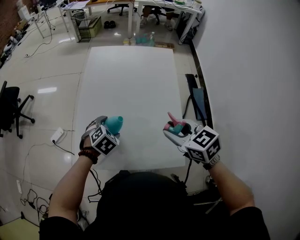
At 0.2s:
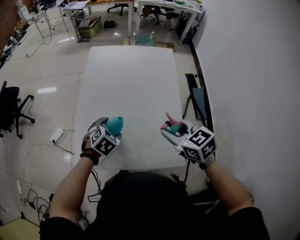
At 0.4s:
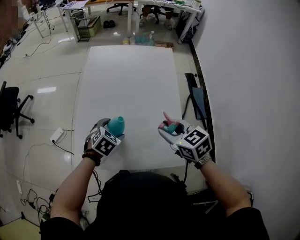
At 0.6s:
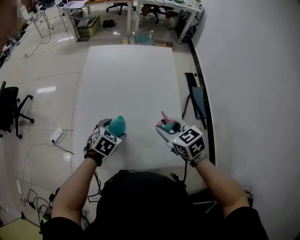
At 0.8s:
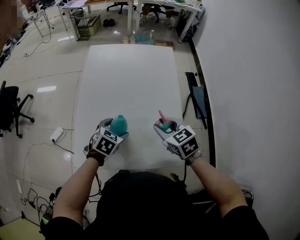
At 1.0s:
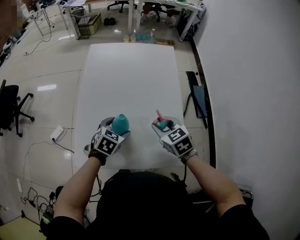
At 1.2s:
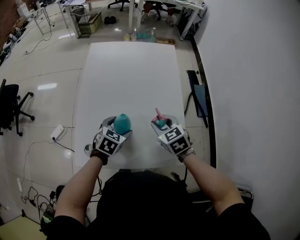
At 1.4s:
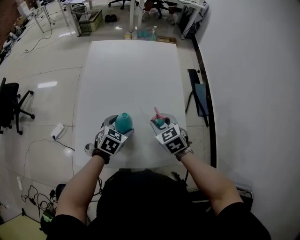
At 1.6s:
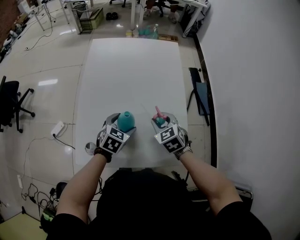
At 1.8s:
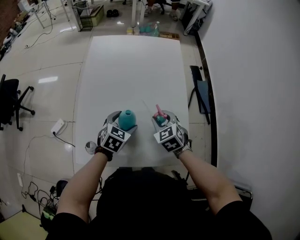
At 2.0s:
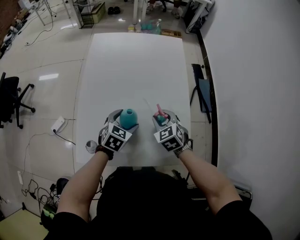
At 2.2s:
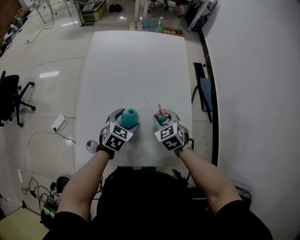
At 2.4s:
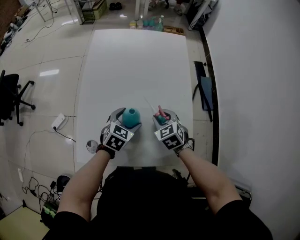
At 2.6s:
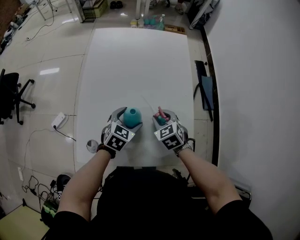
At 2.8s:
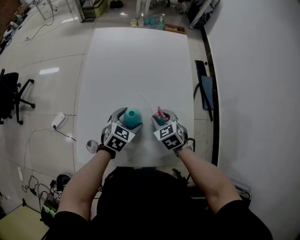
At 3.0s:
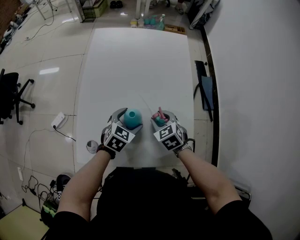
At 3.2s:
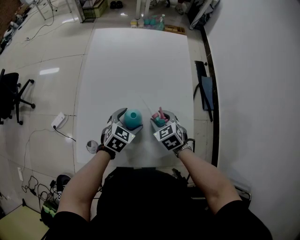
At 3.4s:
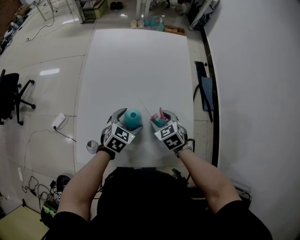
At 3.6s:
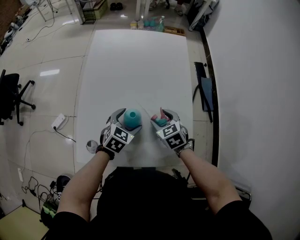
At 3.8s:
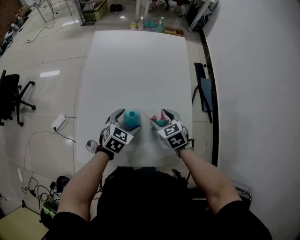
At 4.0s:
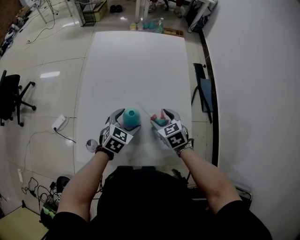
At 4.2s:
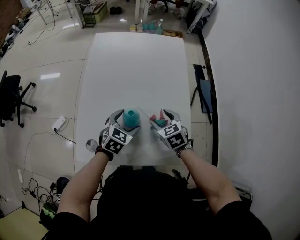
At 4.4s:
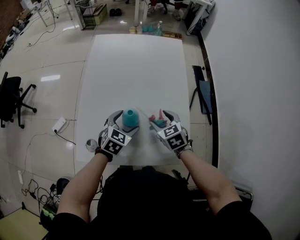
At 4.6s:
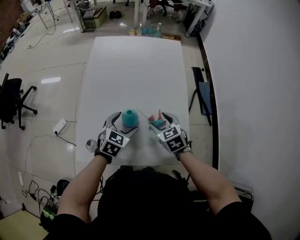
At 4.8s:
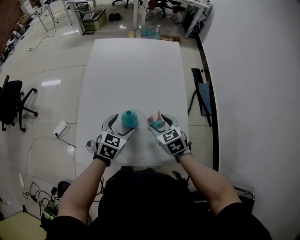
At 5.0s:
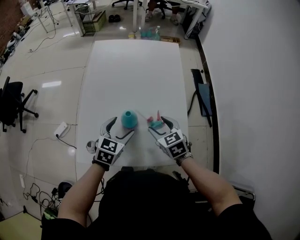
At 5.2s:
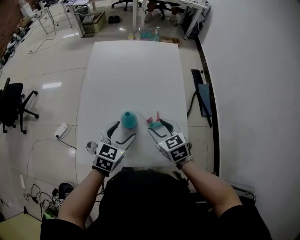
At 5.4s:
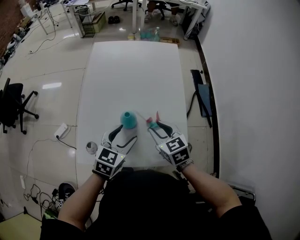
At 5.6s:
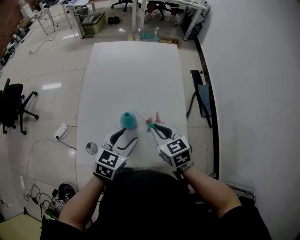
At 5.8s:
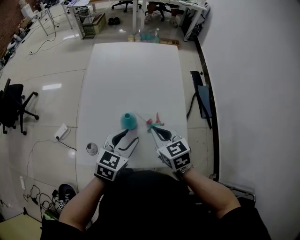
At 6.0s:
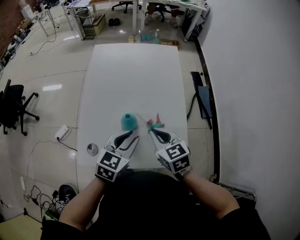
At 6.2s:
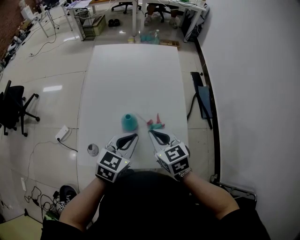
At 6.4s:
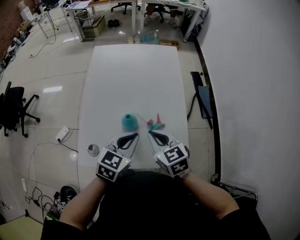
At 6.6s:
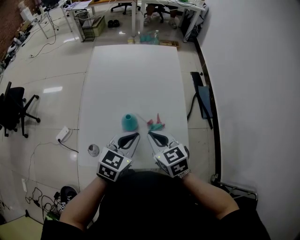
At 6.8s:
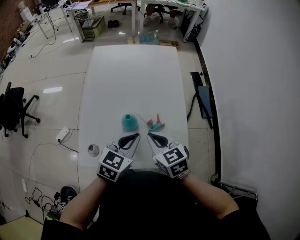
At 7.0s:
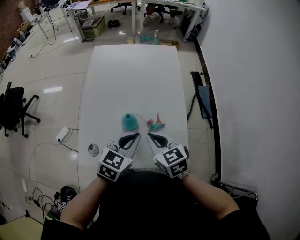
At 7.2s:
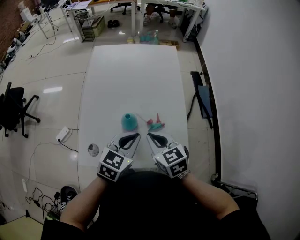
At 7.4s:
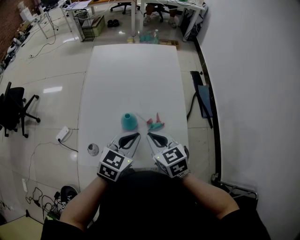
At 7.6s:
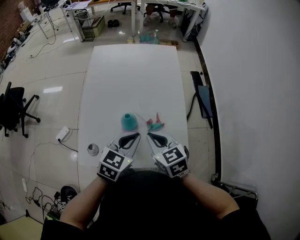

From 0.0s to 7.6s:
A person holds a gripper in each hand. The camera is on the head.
From 0.0s to 1.6s: The right gripper heads downward and forward, covering approximately 15 cm, and swivels roughly 20 degrees. The left gripper moves to the right, approximately 5 cm, and changes its angle by approximately 20 degrees.
From 1.6s to 3.0s: The right gripper moves about 5 cm.
From 3.0s to 4.6s: The right gripper opens.
From 4.6s to 6.0s: The left gripper moves upward and backward, about 10 cm, and closes up; the right gripper goes some 10 cm upward, and closes its fingers.
From 6.0s to 7.6s: The grippers make only small movements.

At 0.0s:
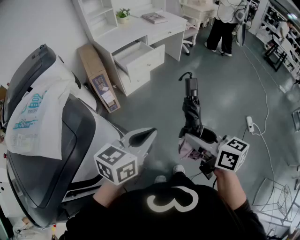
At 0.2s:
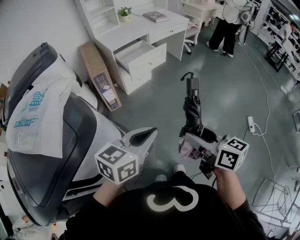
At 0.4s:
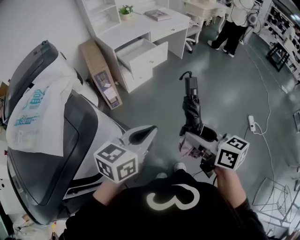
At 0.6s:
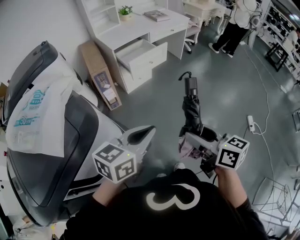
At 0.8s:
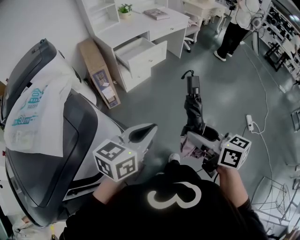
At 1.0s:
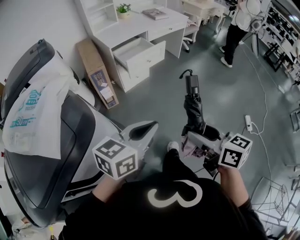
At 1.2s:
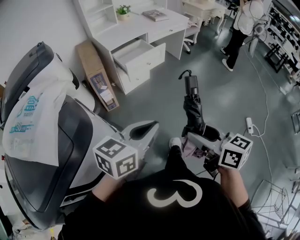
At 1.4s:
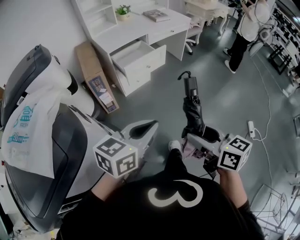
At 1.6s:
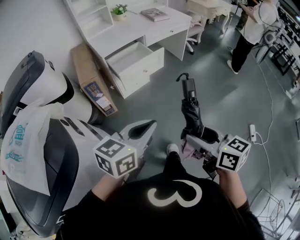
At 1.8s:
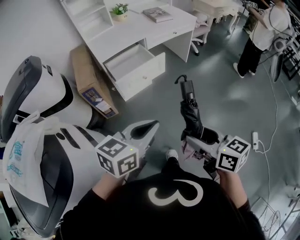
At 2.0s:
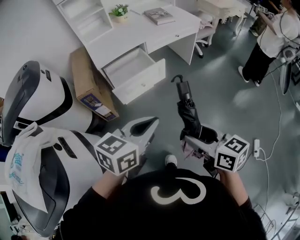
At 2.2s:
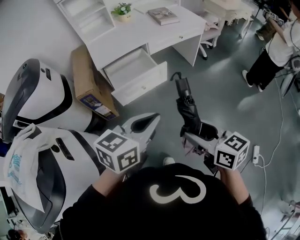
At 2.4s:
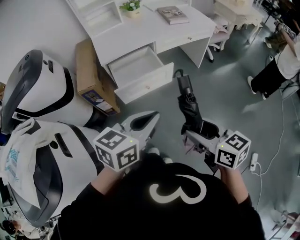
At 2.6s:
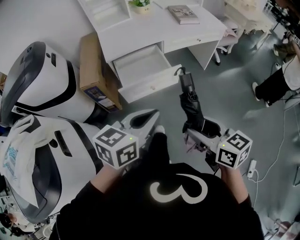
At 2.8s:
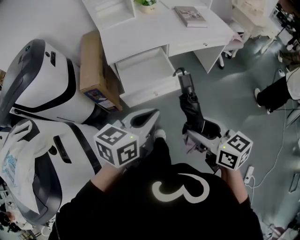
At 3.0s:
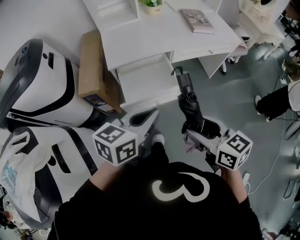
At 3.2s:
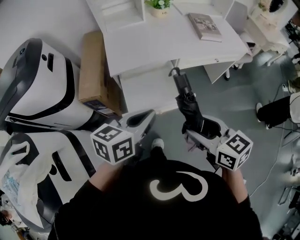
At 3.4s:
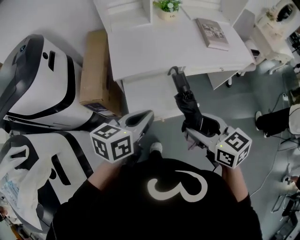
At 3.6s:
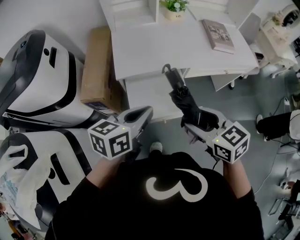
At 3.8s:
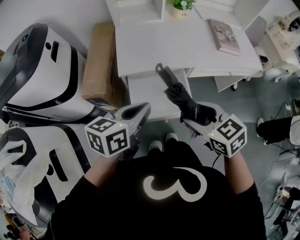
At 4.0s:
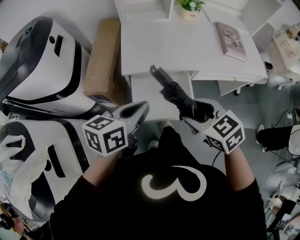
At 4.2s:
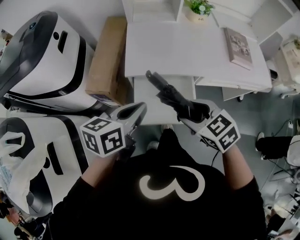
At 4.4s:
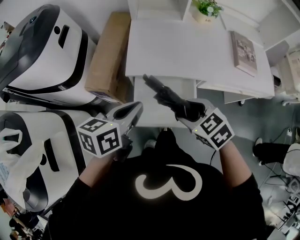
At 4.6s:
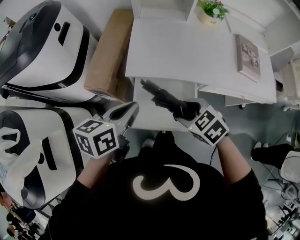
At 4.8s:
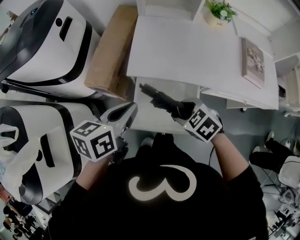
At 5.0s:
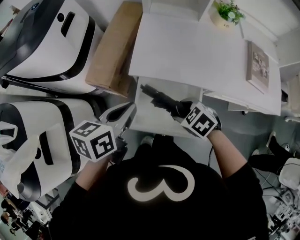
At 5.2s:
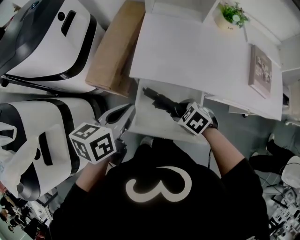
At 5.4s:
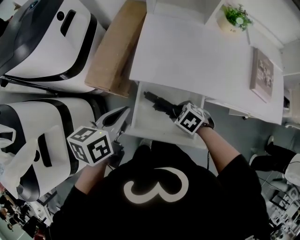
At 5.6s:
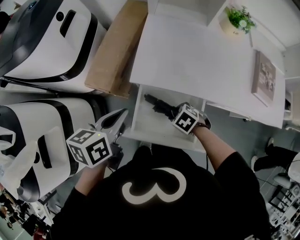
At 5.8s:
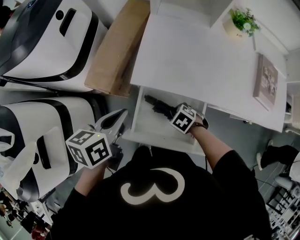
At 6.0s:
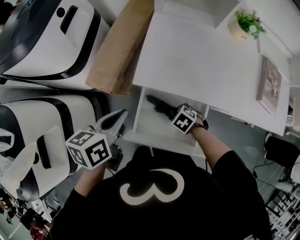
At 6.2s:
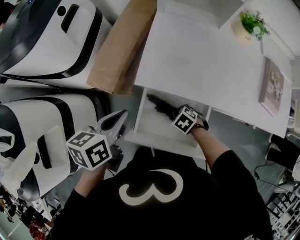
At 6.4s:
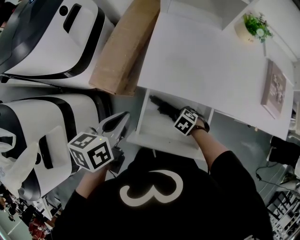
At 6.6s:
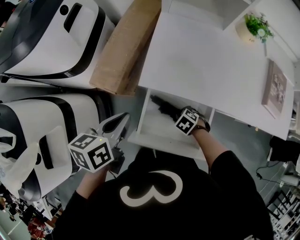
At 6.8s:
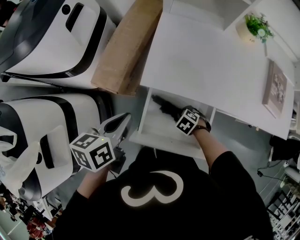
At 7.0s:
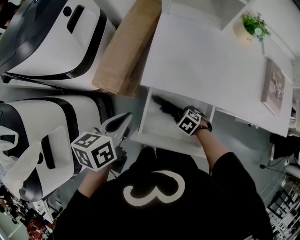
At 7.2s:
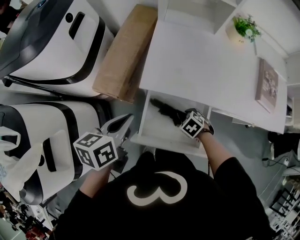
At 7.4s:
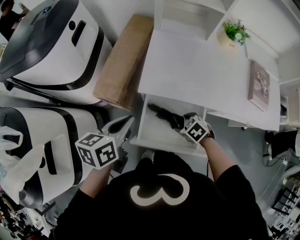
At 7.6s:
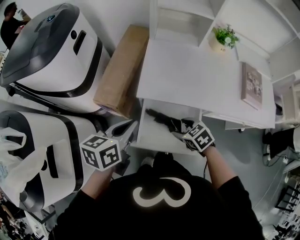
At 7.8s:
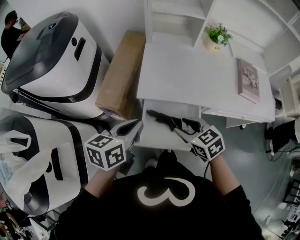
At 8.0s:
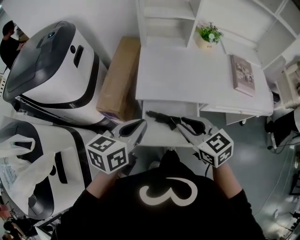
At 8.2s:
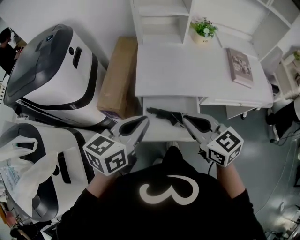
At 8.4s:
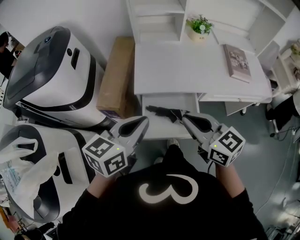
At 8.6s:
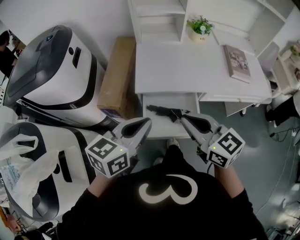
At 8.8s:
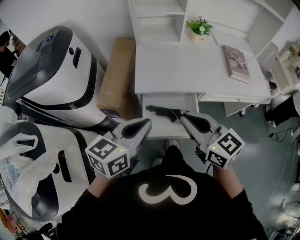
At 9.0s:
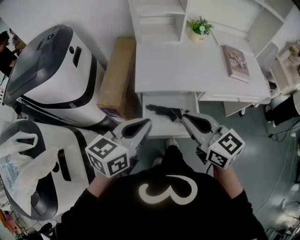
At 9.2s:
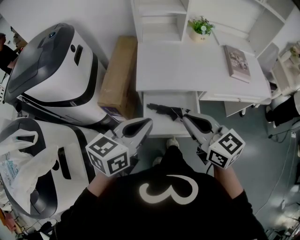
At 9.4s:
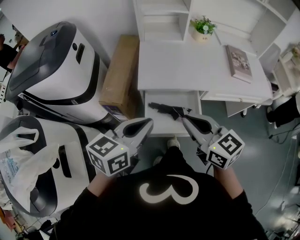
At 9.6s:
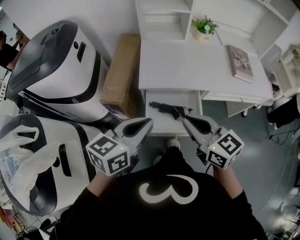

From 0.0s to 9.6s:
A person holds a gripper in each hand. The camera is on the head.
From 0.0s to 1.6s: The two grippers go approximately 15 cm forward.
From 1.6s to 3.2s: The pair of grippers is taken forward, about 50 cm. The left gripper rotates roughly 20 degrees, while the right gripper swivels some 30 degrees.
From 3.2s to 4.8s: The left gripper moves roughly 20 cm, and rotates about 30 degrees. The right gripper changes place by approximately 30 cm, and angles its fingers downward, by roughly 30 degrees.
From 4.8s to 6.4s: The right gripper travels downward by about 25 cm, and swivels about 20 degrees, while the left gripper shifts by about 10 cm.
From 6.4s to 8.0s: The right gripper travels upward by about 35 cm, tips its fingers upward by roughly 50 degrees, and closes up; the left gripper goes some 10 cm upward, and changes its angle by roughly 30 degrees.
From 8.0s to 9.6s: Both grippers move backward, some 5 cm.

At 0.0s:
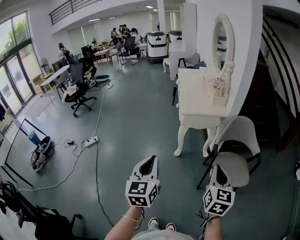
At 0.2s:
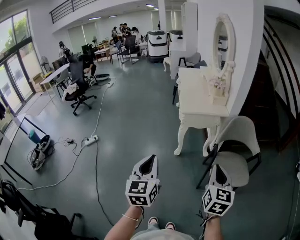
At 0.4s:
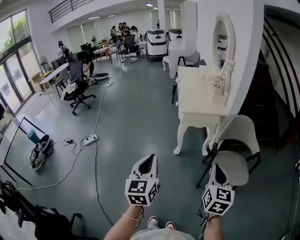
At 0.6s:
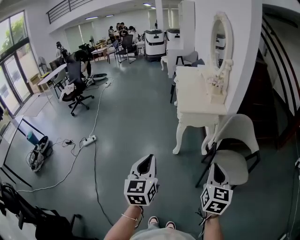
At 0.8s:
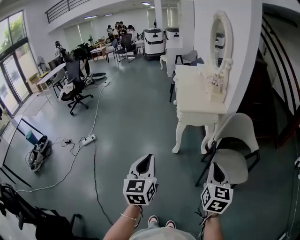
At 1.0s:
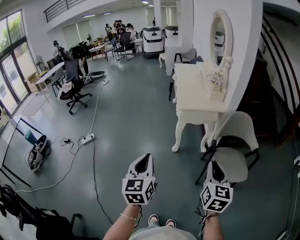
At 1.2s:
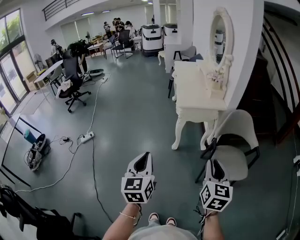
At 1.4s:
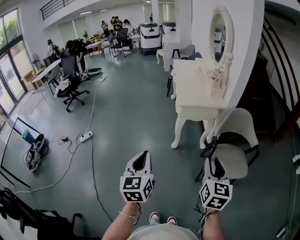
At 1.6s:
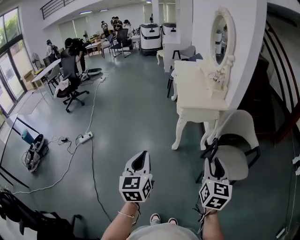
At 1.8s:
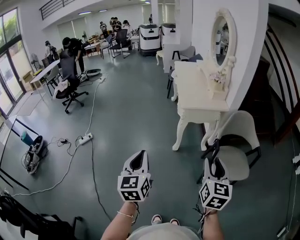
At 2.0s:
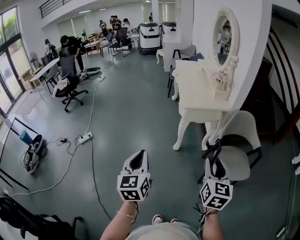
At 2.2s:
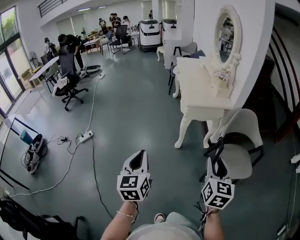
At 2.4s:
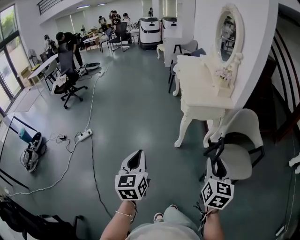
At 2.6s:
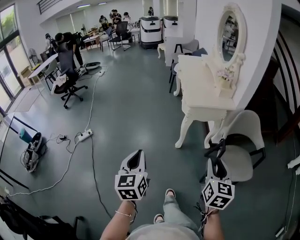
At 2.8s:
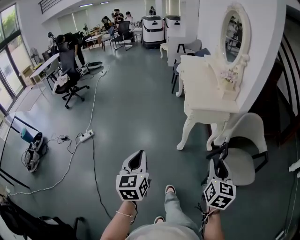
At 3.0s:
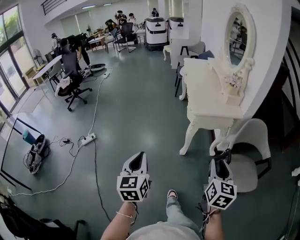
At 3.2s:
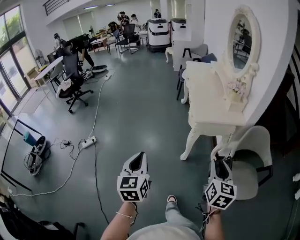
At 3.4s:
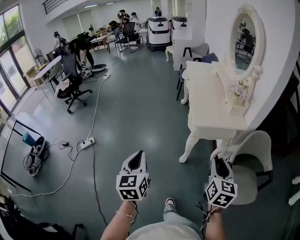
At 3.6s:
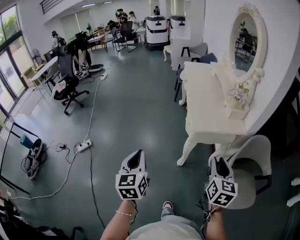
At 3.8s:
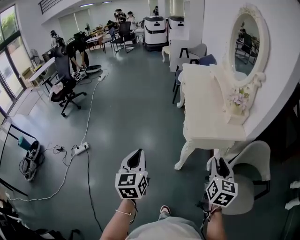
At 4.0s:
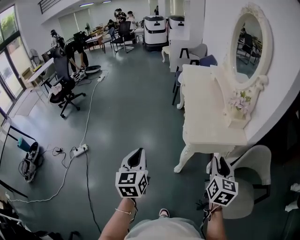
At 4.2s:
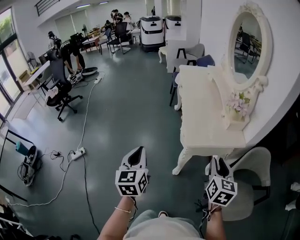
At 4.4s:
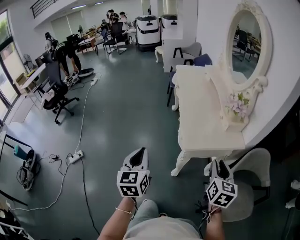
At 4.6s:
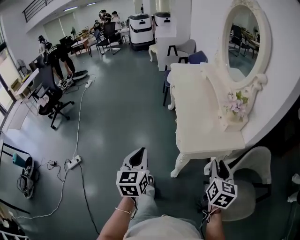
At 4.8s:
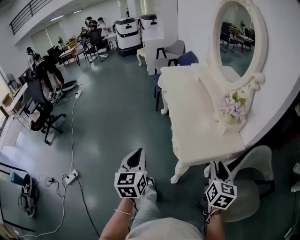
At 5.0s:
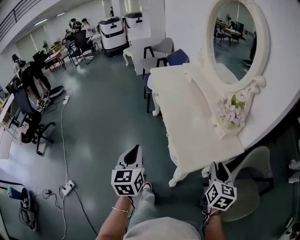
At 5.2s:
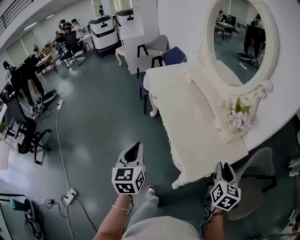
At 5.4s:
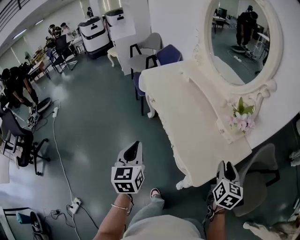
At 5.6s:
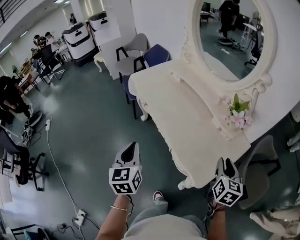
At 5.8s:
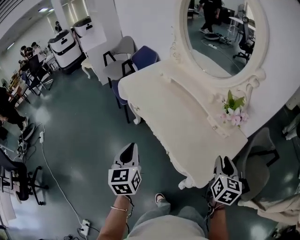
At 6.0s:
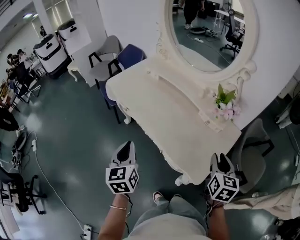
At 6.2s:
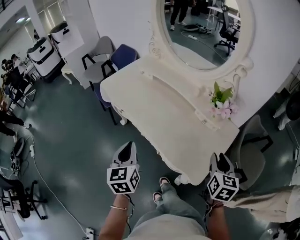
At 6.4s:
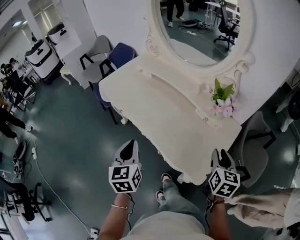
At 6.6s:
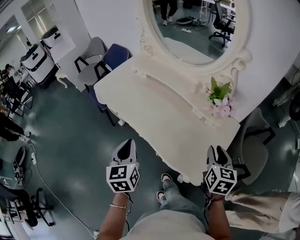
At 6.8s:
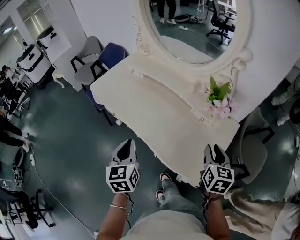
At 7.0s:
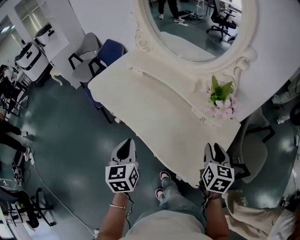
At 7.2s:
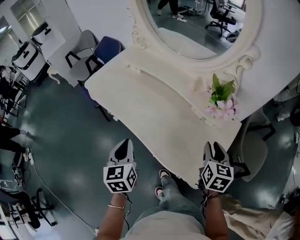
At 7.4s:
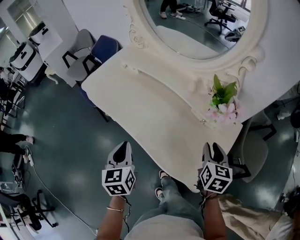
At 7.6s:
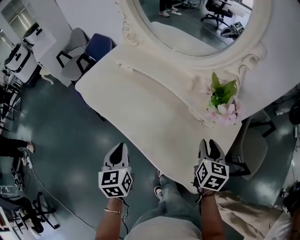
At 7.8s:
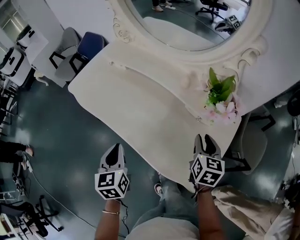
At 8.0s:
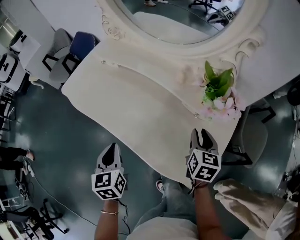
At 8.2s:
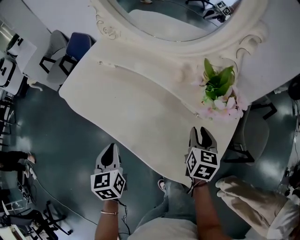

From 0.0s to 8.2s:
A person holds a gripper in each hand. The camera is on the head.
From 0.0s to 1.6s: The grippers both shift to the left by some 5 cm. The right gripper opens.
From 1.6s to 3.2s: The left gripper goes some 20 cm forward and to the left; the right gripper goes some 20 cm forward.
From 3.2s to 5.0s: Both grippers travel together forward, some 40 cm.
From 5.0s to 6.6s: The right gripper moves about 10 cm, and changes its angle by about 30 degrees. The left gripper shifts by some 25 cm, and turns by about 30 degrees.
From 6.6s to 8.2s: The right gripper travels forward and downward by roughly 15 cm; the left gripper shifts roughly 15 cm downward and forward.
